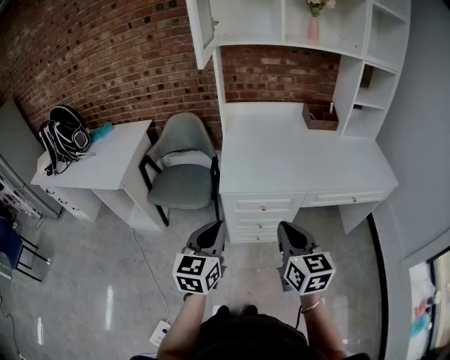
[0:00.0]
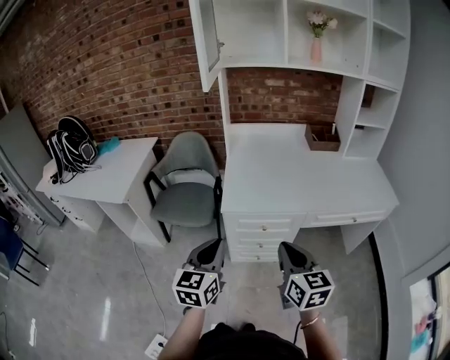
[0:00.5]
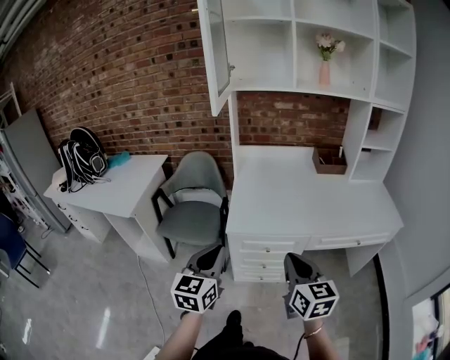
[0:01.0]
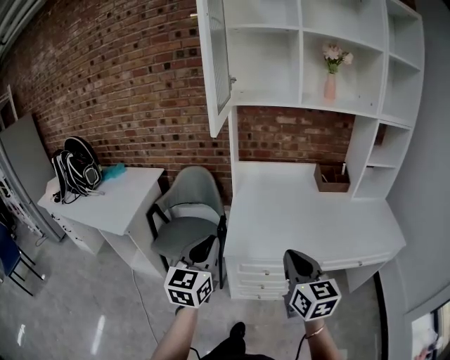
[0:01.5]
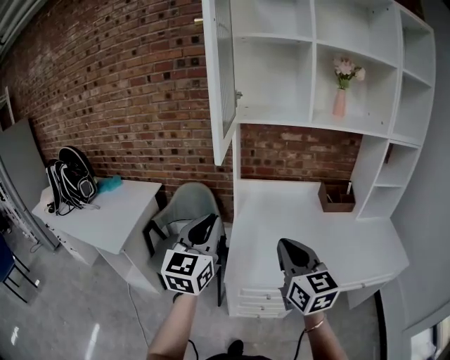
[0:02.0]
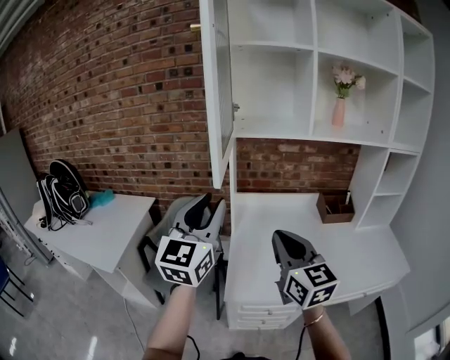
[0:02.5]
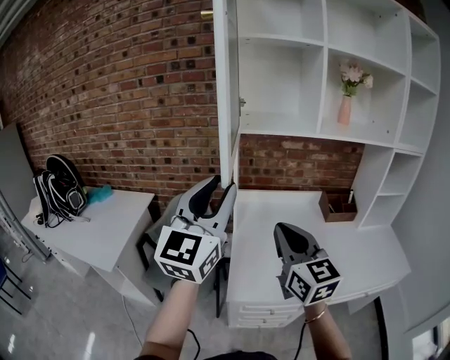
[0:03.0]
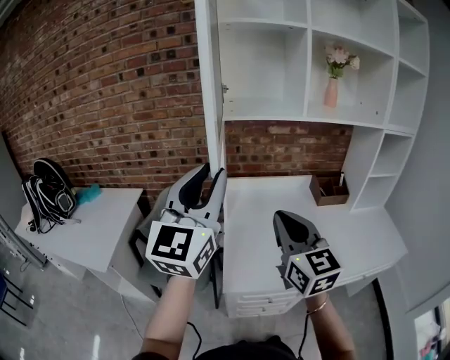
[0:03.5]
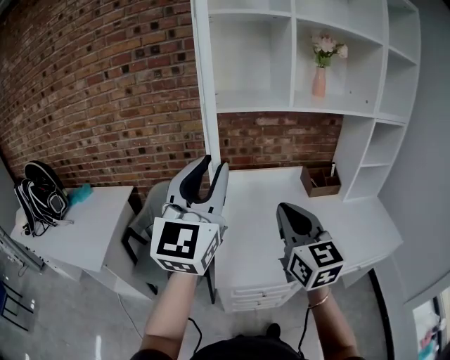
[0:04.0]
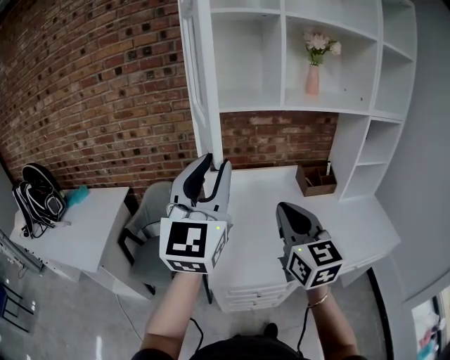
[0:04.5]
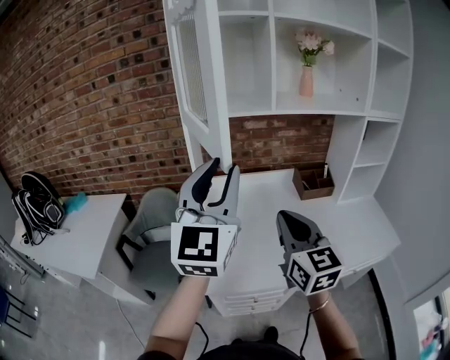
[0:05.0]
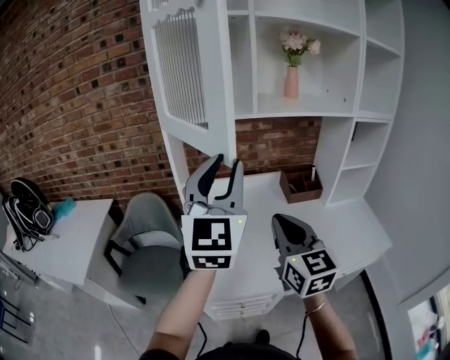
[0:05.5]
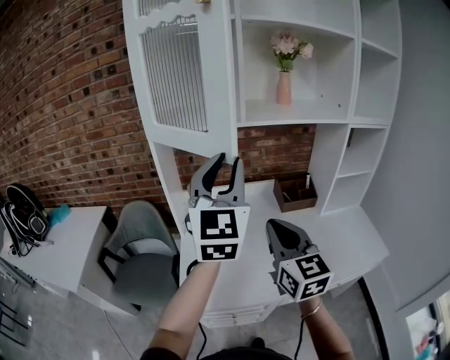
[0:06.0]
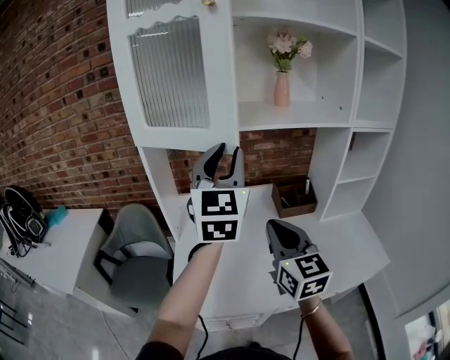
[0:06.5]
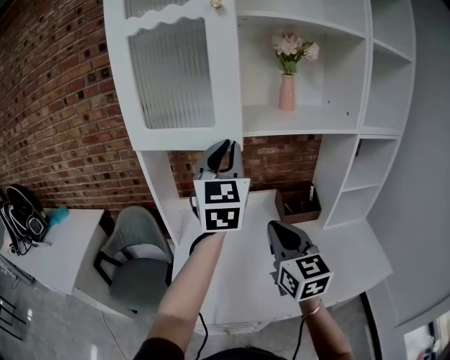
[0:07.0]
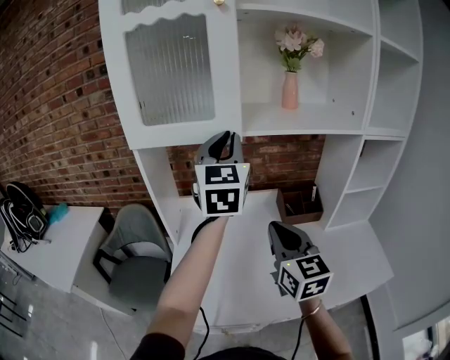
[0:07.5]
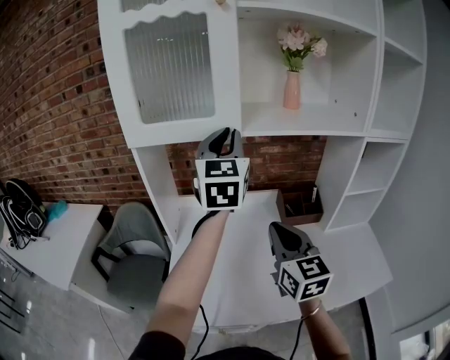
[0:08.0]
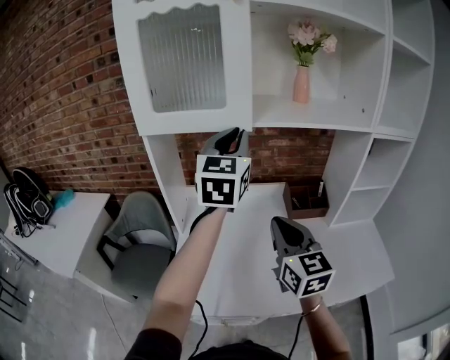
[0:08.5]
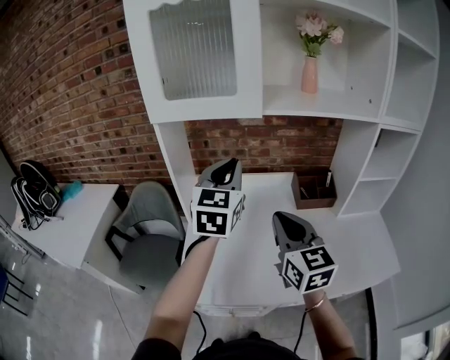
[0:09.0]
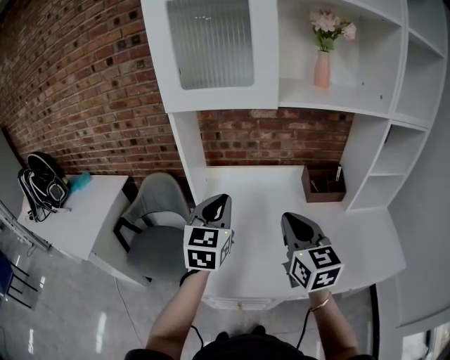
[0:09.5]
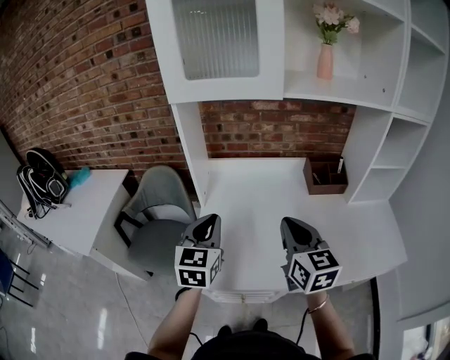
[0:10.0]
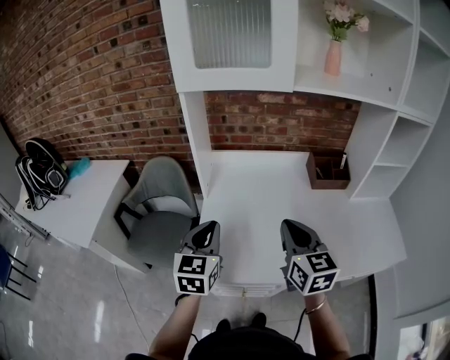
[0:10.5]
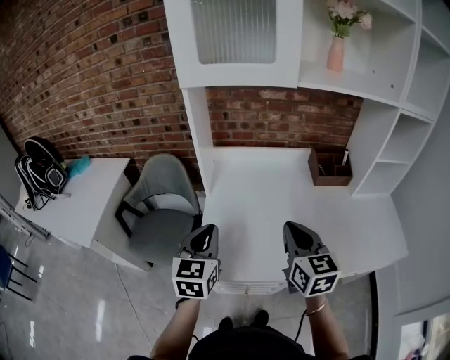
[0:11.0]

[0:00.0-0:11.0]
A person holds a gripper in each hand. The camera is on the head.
0:00.0 to 0:02.0: Both grippers travel together forward and upward, some 30 cm.
0:02.0 to 0:03.5: The left gripper travels upward and forward by about 15 cm, while the right gripper moves forward and upward, some 10 cm.
0:03.5 to 0:05.5: Both grippers move to the right, approximately 15 cm.
0:05.5 to 0:07.5: The left gripper travels forward and to the right by about 25 cm. The right gripper goes some 15 cm forward and to the right.
0:07.5 to 0:09.0: The left gripper moves downward and backward, some 10 cm.
0:09.0 to 0:11.0: The right gripper heads downward, to the left and backward, covering roughly 10 cm, while the left gripper moves downward, to the left and backward, roughly 30 cm.

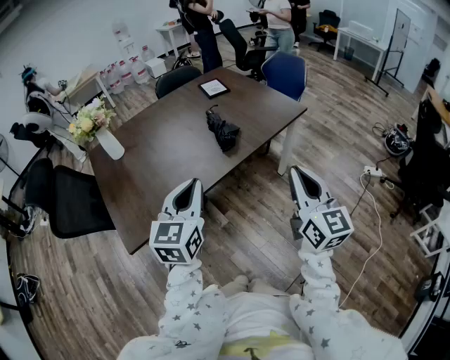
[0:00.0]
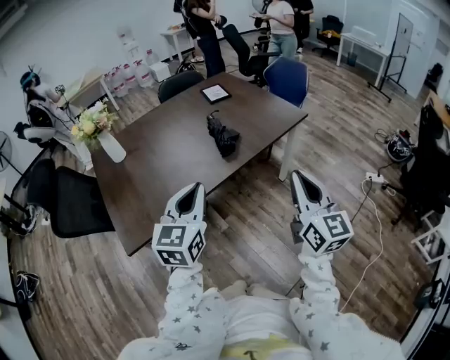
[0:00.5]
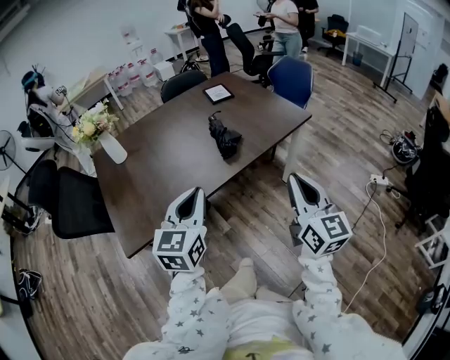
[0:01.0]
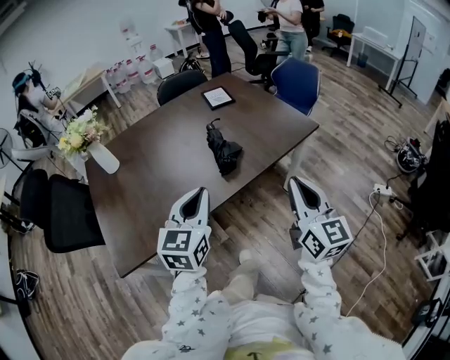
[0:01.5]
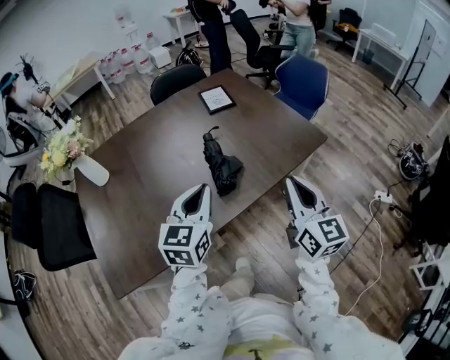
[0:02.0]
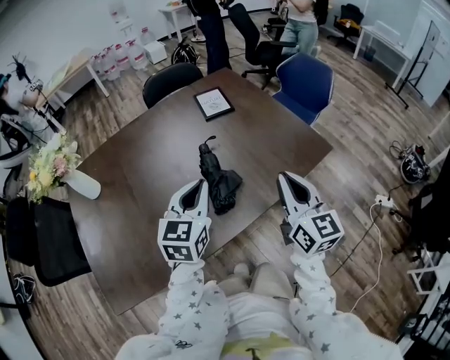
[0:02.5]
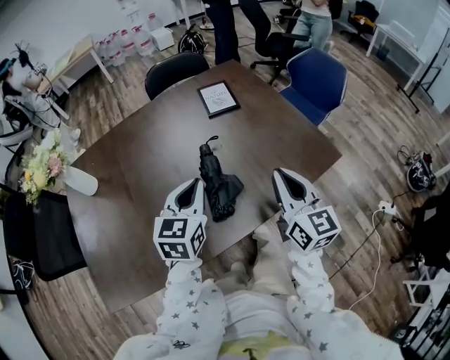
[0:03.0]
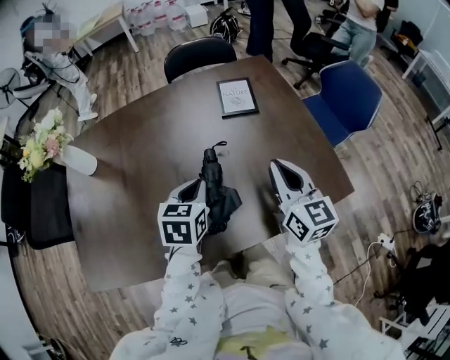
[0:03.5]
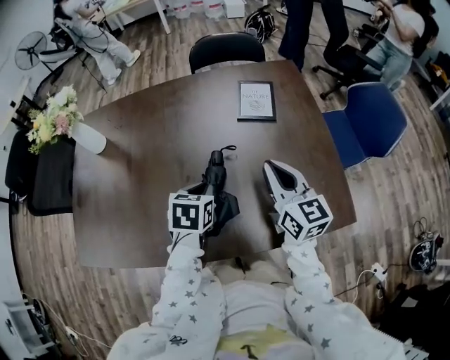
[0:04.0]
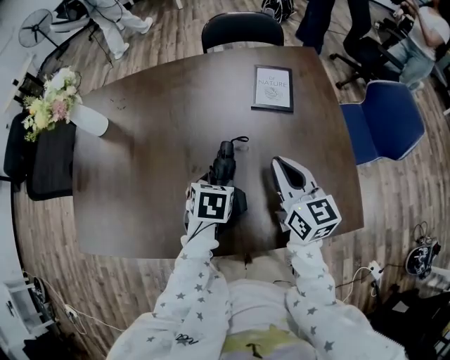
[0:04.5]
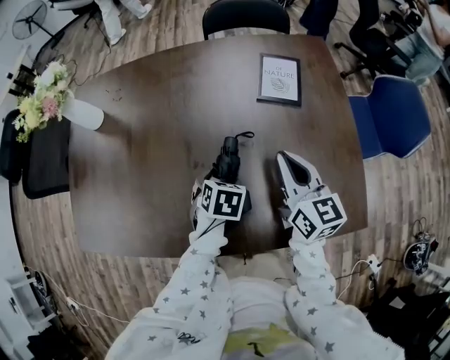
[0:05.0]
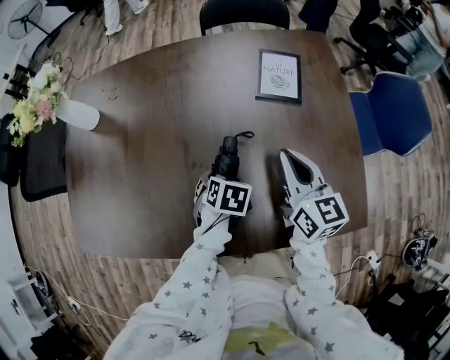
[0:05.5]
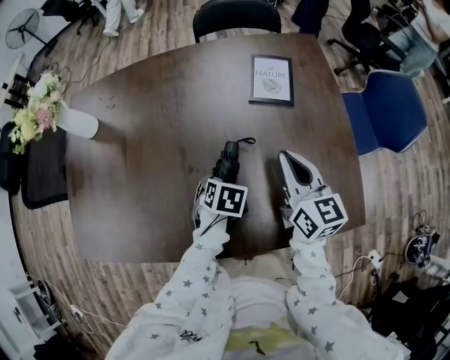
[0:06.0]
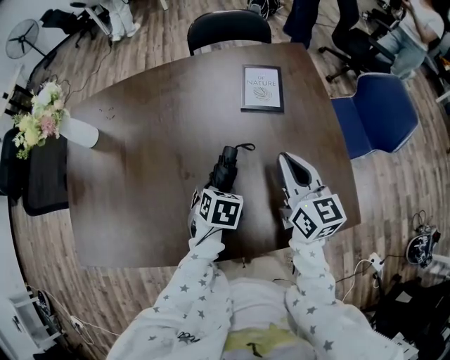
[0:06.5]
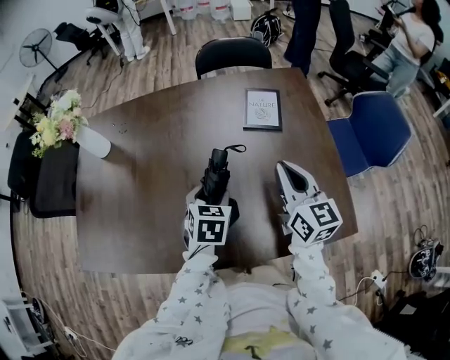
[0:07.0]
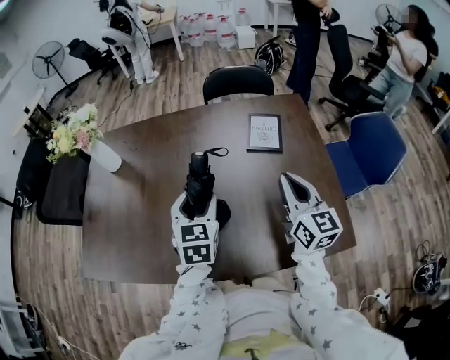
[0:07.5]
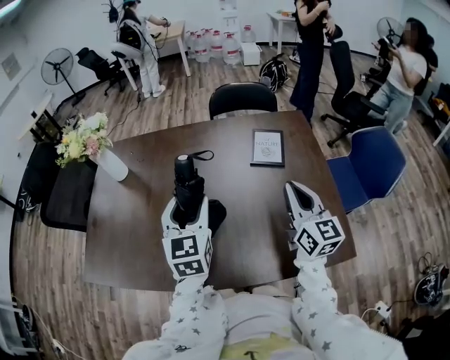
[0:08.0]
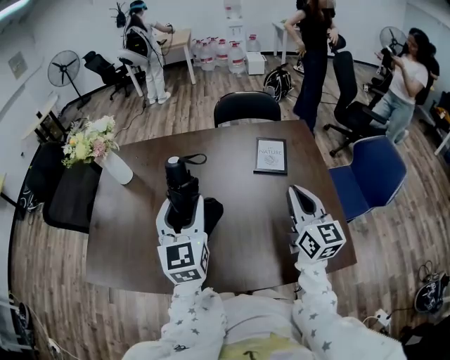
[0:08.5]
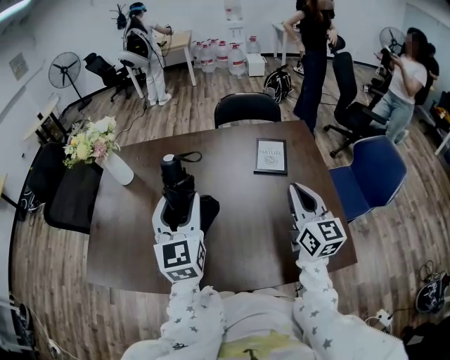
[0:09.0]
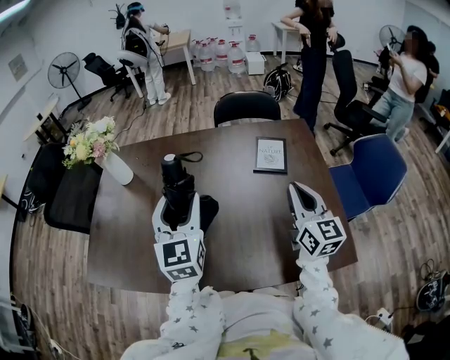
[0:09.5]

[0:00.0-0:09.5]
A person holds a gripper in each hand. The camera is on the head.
0:00.0 to 0:02.0: The two grippers go about 25 cm forward.
0:02.0 to 0:04.0: The right gripper moves approximately 35 cm, and turns by roughly 30 degrees. The left gripper ends up about 25 cm from where it was, and tilts its fingers roughly 40 degrees downward.
0:04.0 to 0:05.5: The left gripper travels downward by about 10 cm, changes its angle by some 20 degrees, and opens its fingers, while the right gripper ends up about 5 cm from where it was.
0:05.5 to 0:07.5: The right gripper is displaced upward by some 10 cm; the left gripper moves upward, approximately 20 cm, and points its fingers about 40 degrees further upward.
0:07.5 to 0:09.5: The left gripper moves upward and to the left, some 10 cm, and changes its angle by roughly 30 degrees.

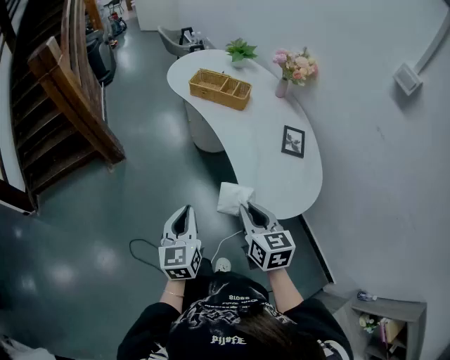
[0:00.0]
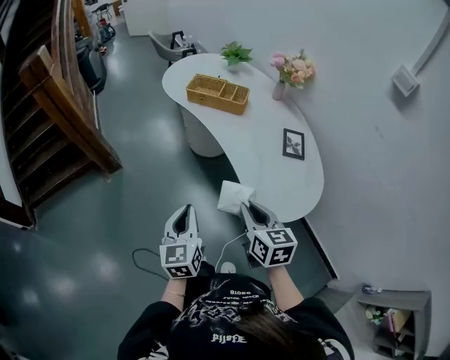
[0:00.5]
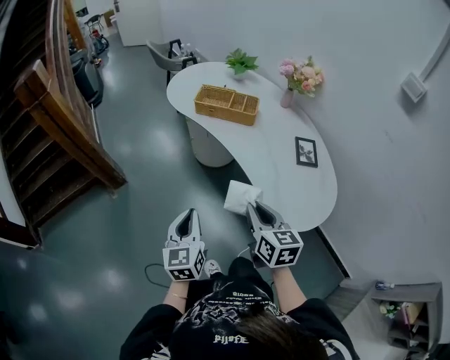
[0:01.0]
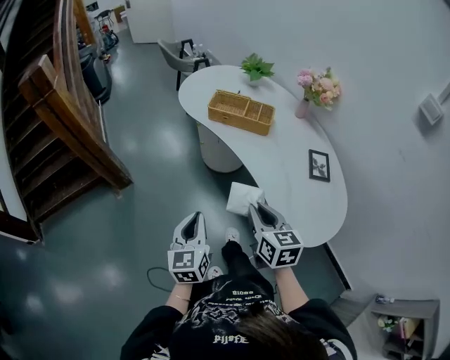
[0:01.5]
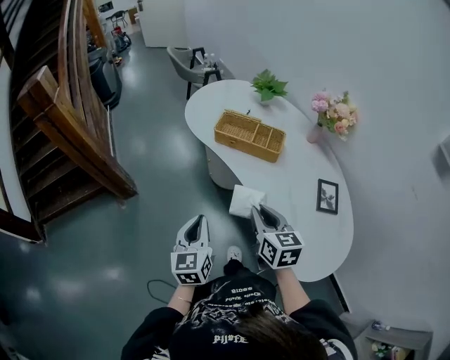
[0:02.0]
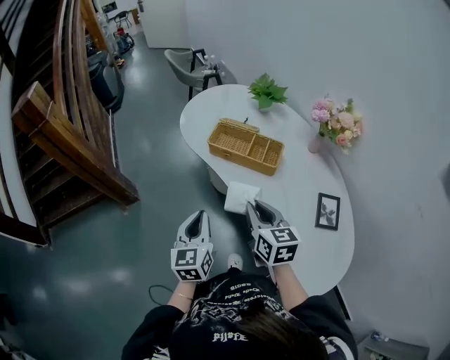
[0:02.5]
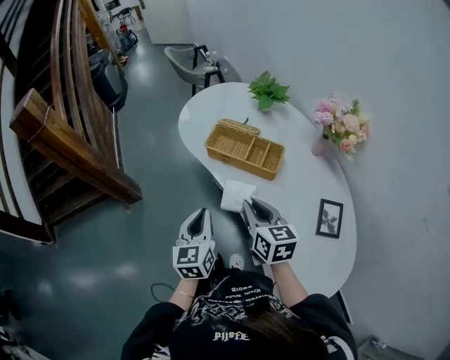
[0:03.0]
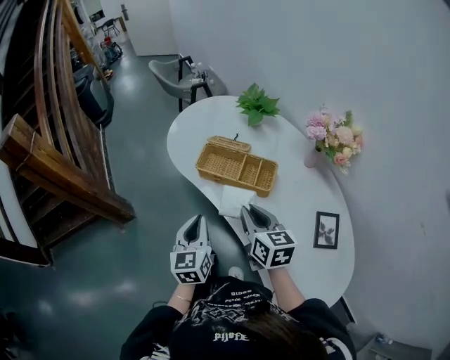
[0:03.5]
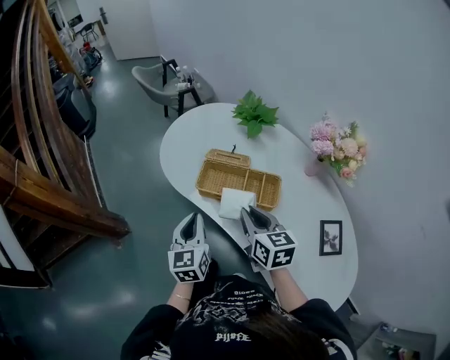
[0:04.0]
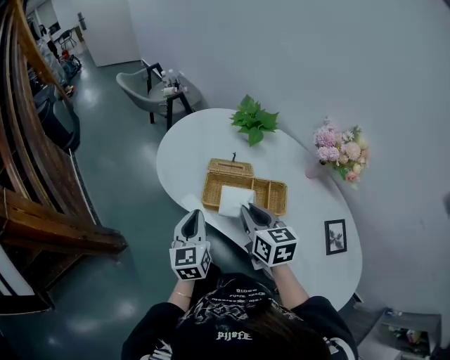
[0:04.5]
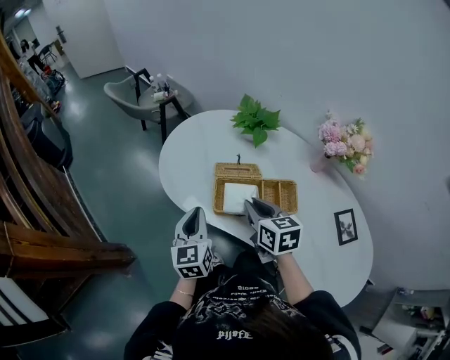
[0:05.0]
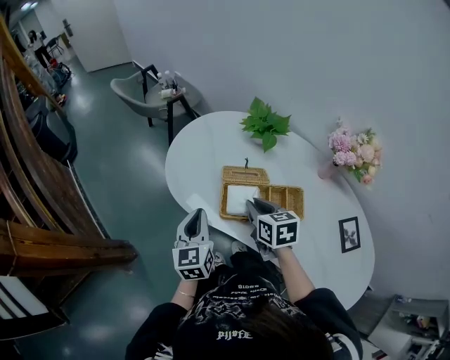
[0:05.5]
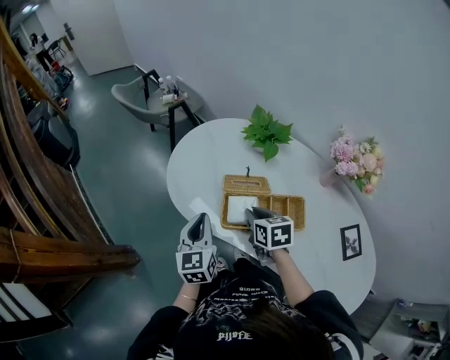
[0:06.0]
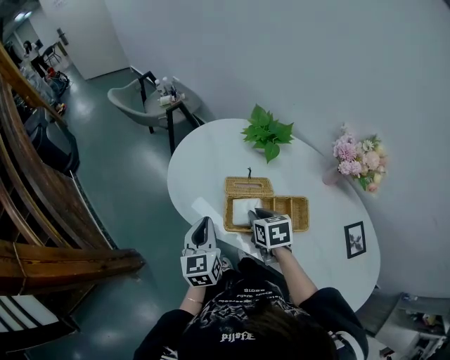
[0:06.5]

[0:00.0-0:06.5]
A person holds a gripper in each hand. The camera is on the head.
0:00.0 to 0:02.0: The grippers both shift forward by some 30 cm.
0:02.0 to 0:04.5: The two grippers go roughly 35 cm forward.
0:04.5 to 0:06.5: The left gripper heads forward, covering about 10 cm, while the right gripper moves forward and downward, roughly 15 cm, and rotates some 20 degrees.
